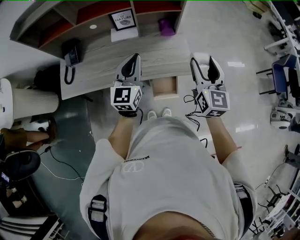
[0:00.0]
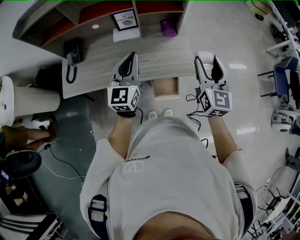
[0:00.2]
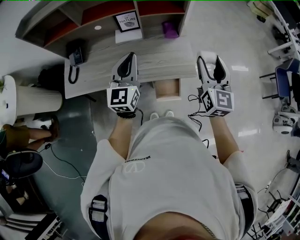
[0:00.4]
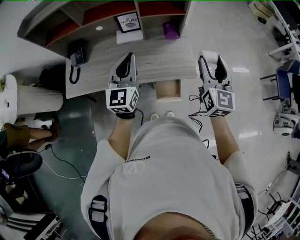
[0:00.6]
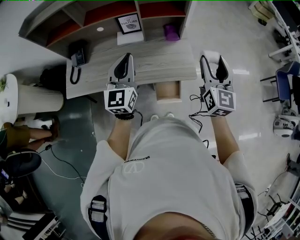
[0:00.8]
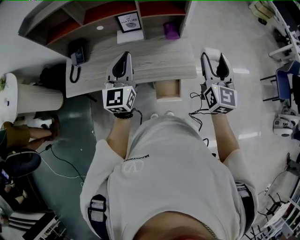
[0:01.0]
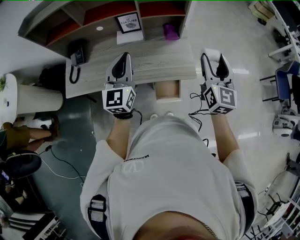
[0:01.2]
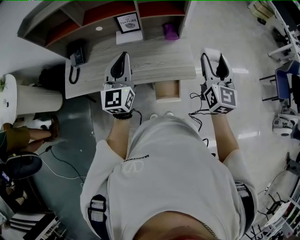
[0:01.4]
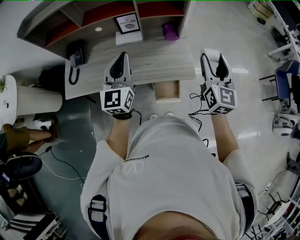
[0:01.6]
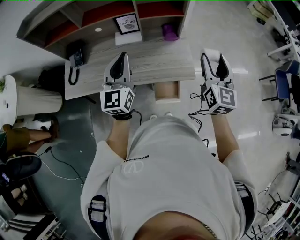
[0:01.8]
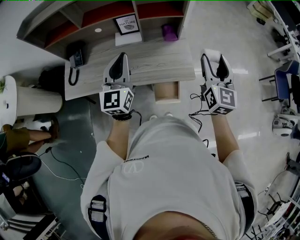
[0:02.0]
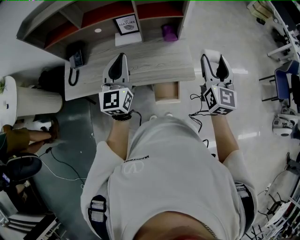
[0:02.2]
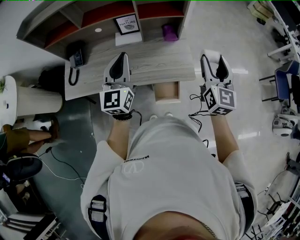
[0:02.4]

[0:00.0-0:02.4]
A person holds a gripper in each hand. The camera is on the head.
0:00.0 to 0:01.2: The left gripper ends up some 5 cm from where it was.
0:01.2 to 0:02.4: The two grippers keep their place.

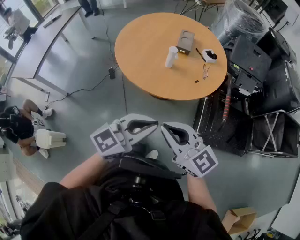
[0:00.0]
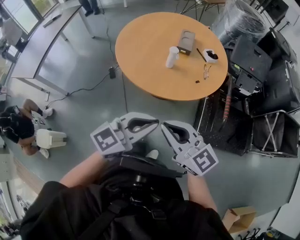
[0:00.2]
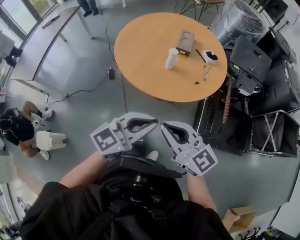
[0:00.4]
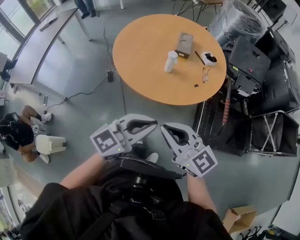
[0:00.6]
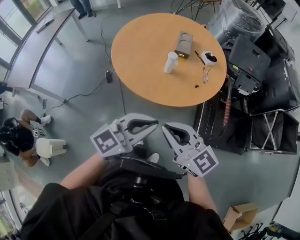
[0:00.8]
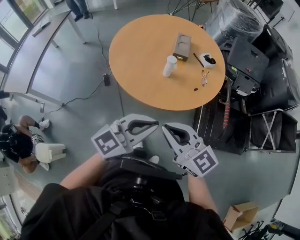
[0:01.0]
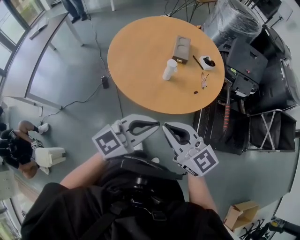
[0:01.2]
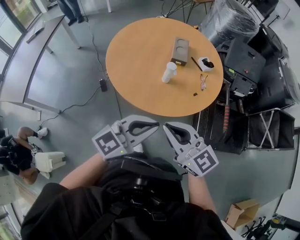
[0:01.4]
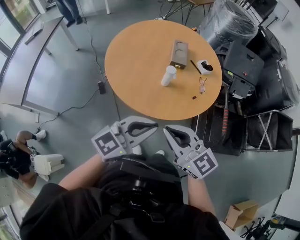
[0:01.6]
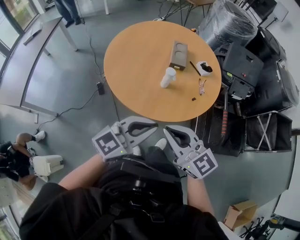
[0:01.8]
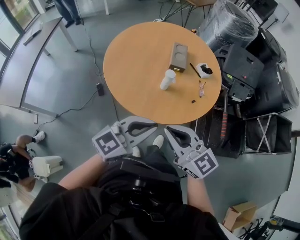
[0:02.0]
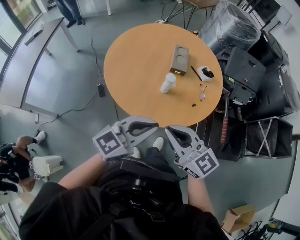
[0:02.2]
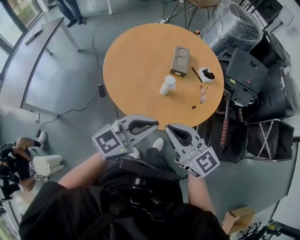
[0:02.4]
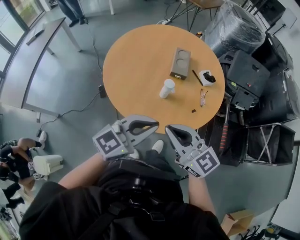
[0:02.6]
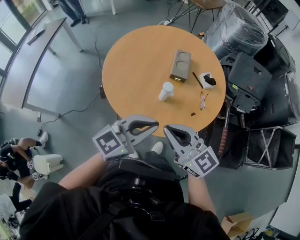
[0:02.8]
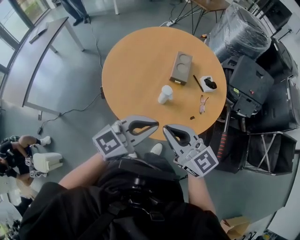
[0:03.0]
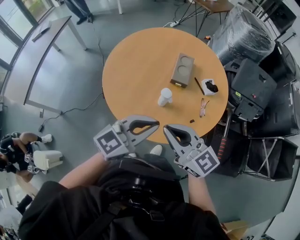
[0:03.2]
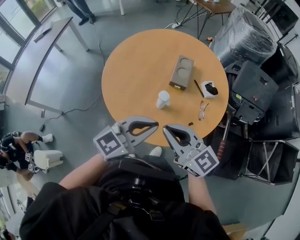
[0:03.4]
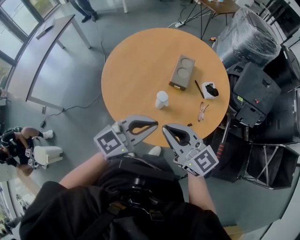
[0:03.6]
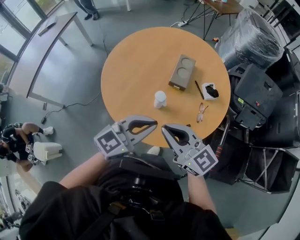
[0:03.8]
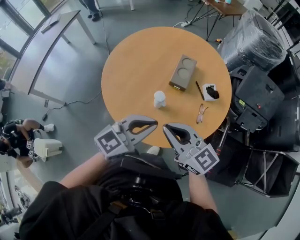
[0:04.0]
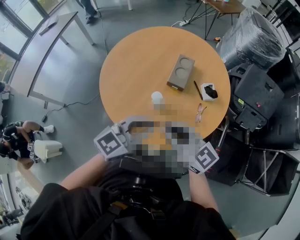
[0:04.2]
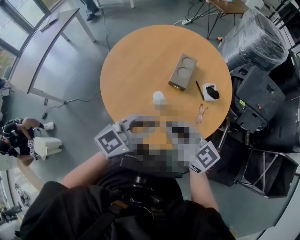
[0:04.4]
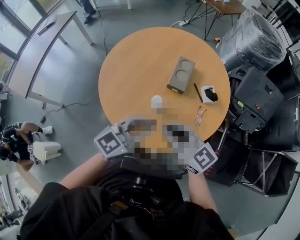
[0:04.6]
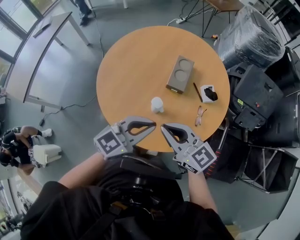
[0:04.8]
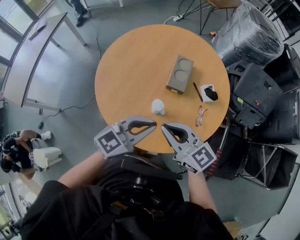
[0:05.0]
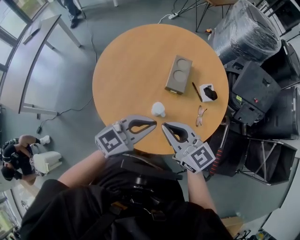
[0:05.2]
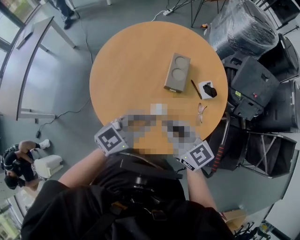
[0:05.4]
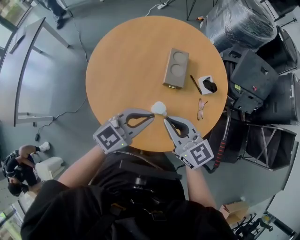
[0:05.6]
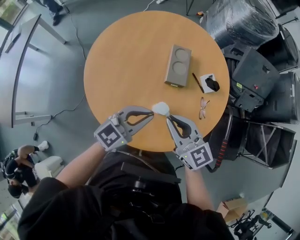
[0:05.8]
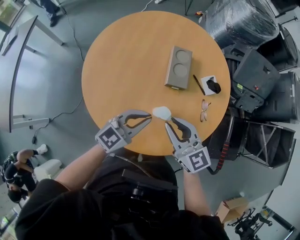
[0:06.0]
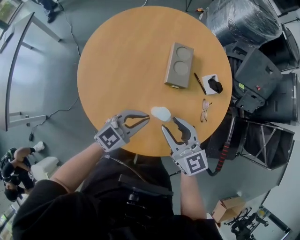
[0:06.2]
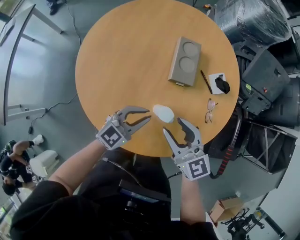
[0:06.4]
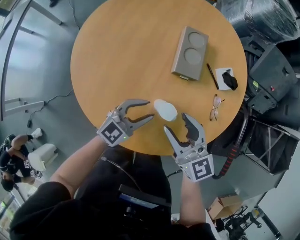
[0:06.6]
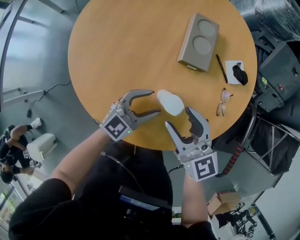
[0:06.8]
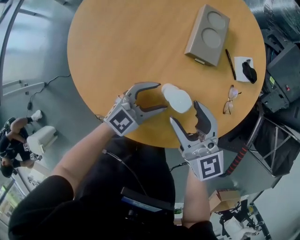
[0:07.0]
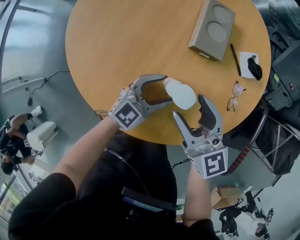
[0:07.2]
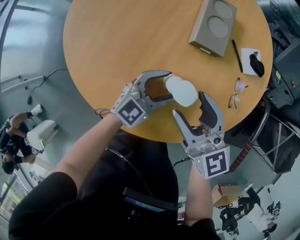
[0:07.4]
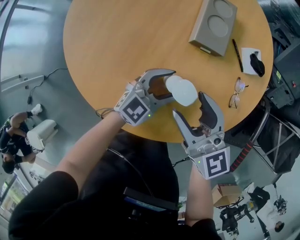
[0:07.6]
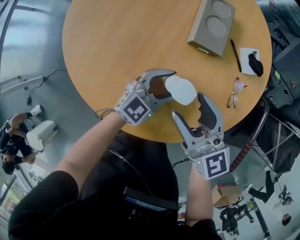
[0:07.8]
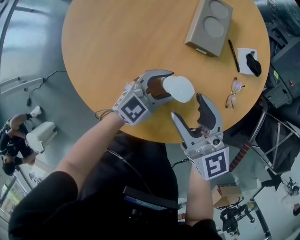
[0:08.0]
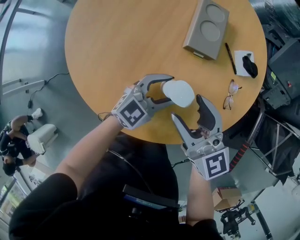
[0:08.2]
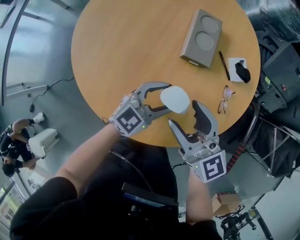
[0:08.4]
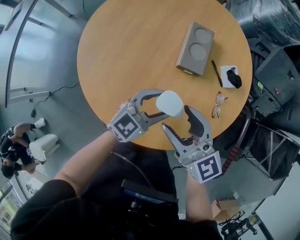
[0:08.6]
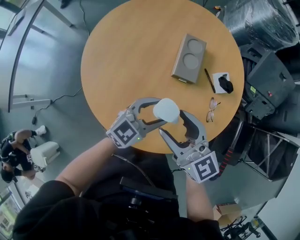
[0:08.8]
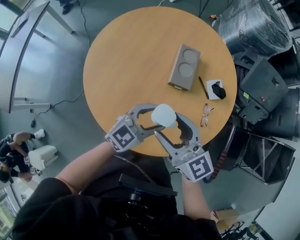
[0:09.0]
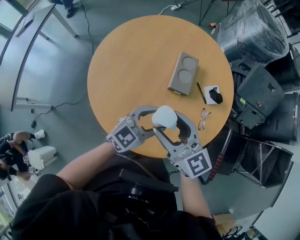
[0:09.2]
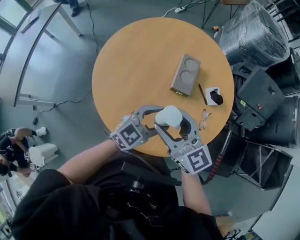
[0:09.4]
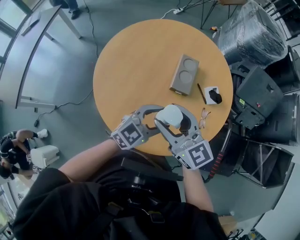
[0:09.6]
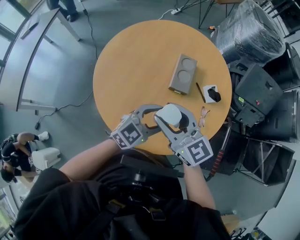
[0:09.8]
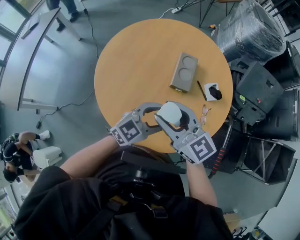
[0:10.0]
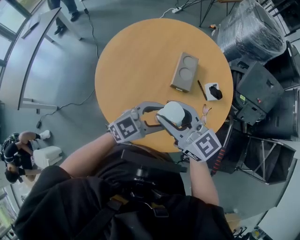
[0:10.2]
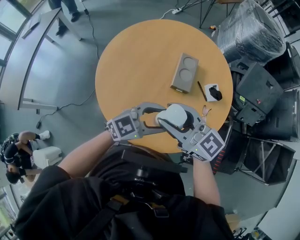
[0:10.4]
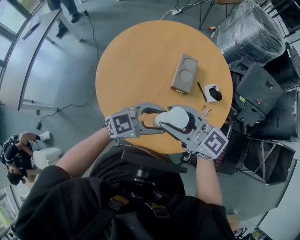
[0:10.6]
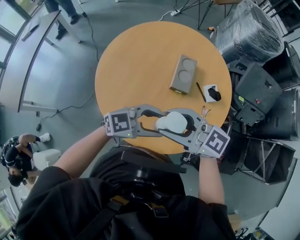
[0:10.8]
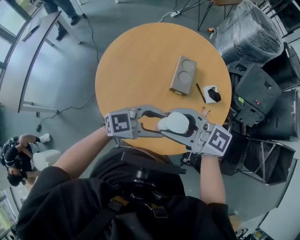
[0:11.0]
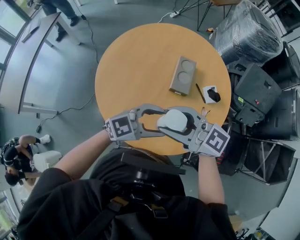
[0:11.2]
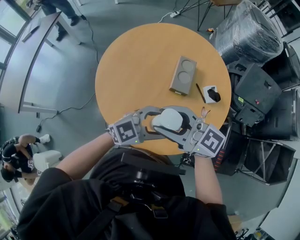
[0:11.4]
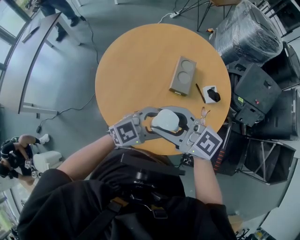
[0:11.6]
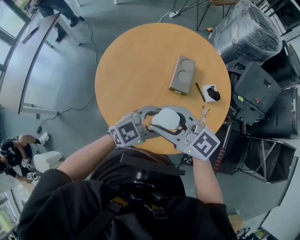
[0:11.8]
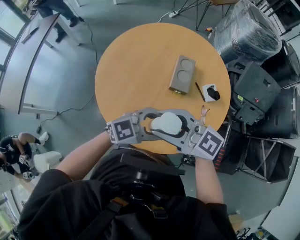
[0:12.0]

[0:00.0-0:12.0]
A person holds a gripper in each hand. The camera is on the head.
0:00.0 to 0:01.6: The two grippers go some 20 cm forward and to the left.
0:01.6 to 0:03.0: Both grippers move forward, some 20 cm.
0:03.0 to 0:04.4: The two grippers go about 15 cm to the right and forward.
0:04.4 to 0:06.0: Both grippers travel together forward, downward and to the left, roughly 25 cm. The right gripper turns by about 30 degrees.
0:06.0 to 0:07.6: The two grippers go approximately 25 cm downward. The right gripper opens up. Meanwhile the left gripper opens its fingers.
0:07.6 to 0:09.0: Both grippers travel together upward, roughly 25 cm.
0:09.0 to 0:10.4: Both grippers move upward, roughly 10 cm.
0:10.4 to 0:12.0: The right gripper shifts by some 5 cm.

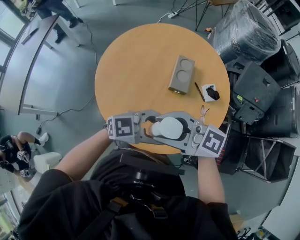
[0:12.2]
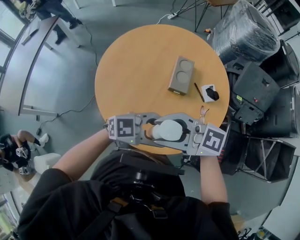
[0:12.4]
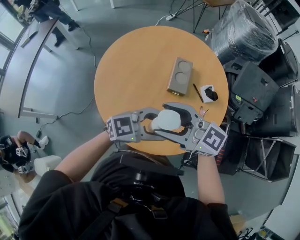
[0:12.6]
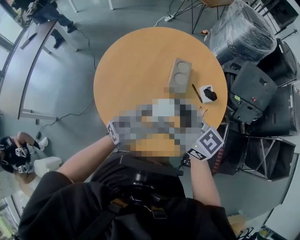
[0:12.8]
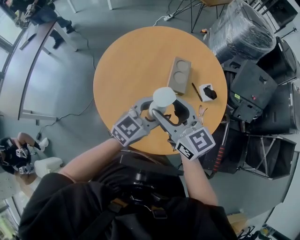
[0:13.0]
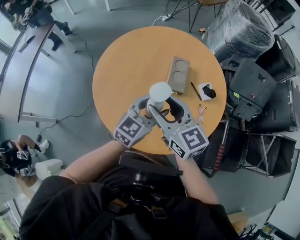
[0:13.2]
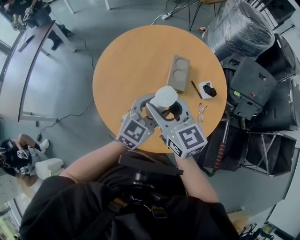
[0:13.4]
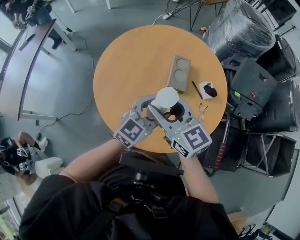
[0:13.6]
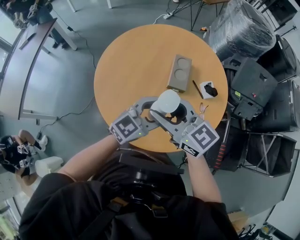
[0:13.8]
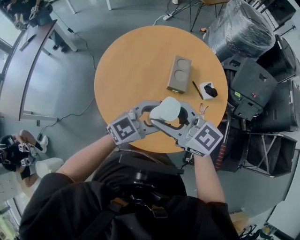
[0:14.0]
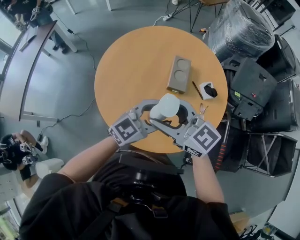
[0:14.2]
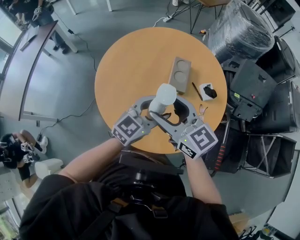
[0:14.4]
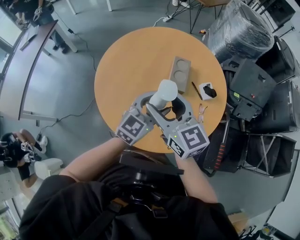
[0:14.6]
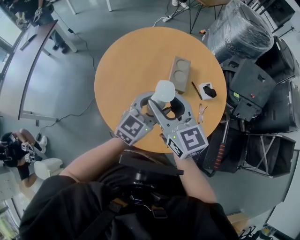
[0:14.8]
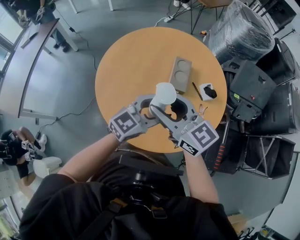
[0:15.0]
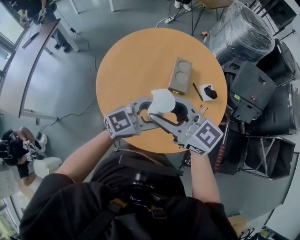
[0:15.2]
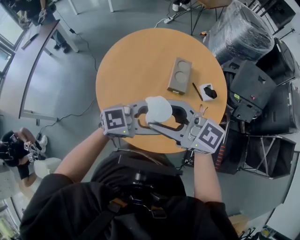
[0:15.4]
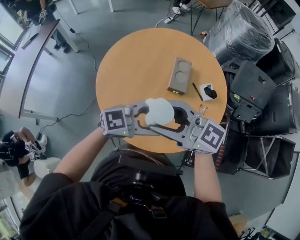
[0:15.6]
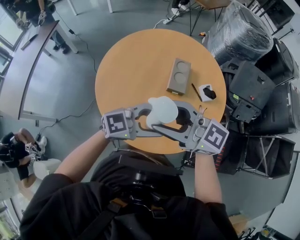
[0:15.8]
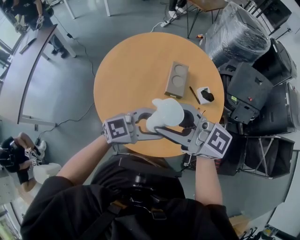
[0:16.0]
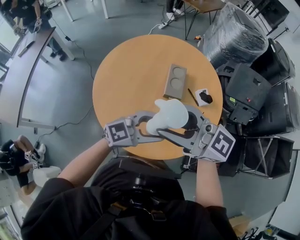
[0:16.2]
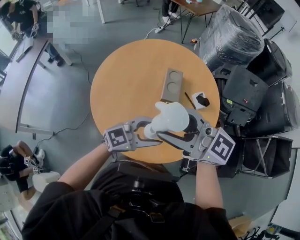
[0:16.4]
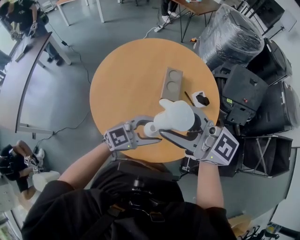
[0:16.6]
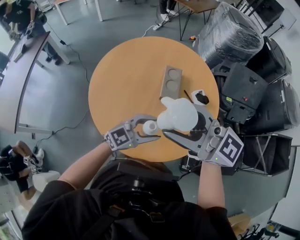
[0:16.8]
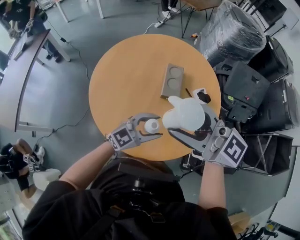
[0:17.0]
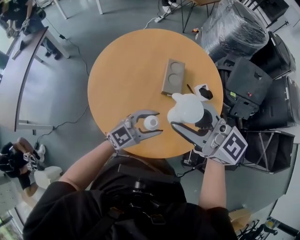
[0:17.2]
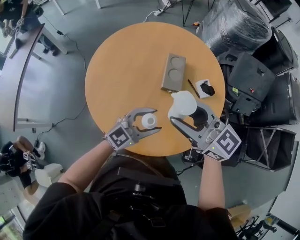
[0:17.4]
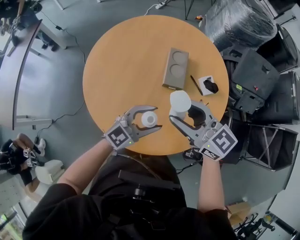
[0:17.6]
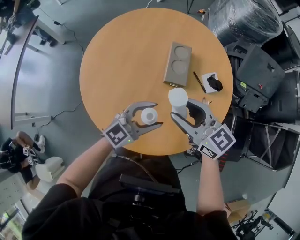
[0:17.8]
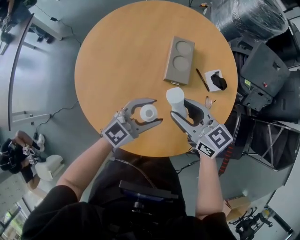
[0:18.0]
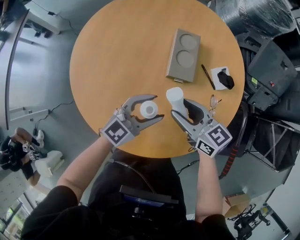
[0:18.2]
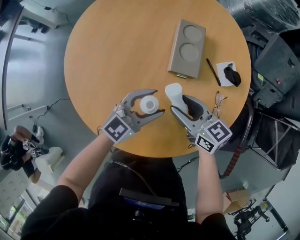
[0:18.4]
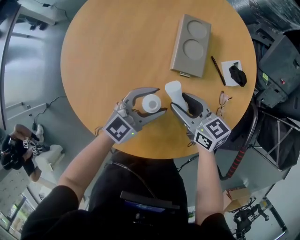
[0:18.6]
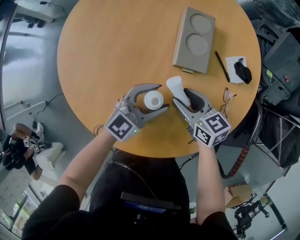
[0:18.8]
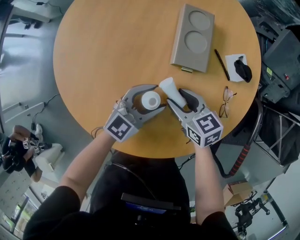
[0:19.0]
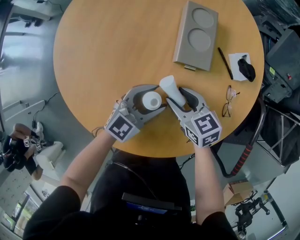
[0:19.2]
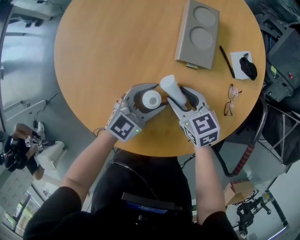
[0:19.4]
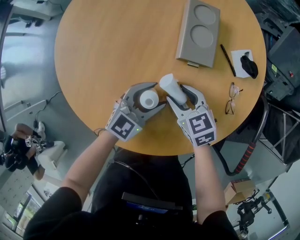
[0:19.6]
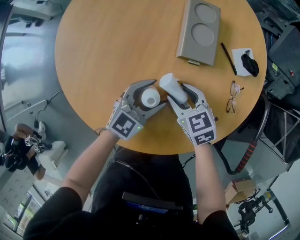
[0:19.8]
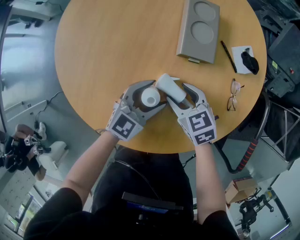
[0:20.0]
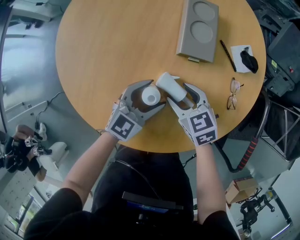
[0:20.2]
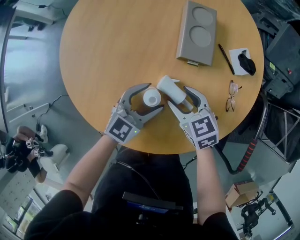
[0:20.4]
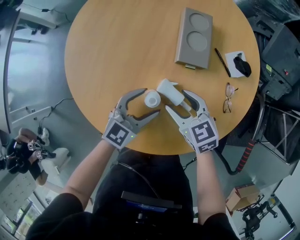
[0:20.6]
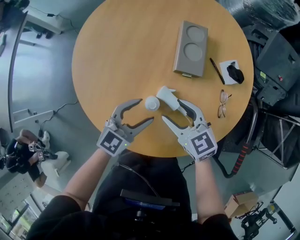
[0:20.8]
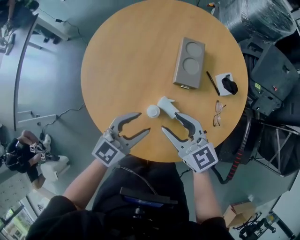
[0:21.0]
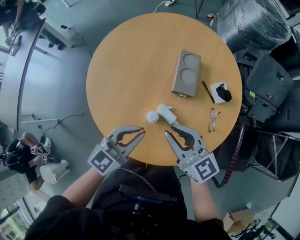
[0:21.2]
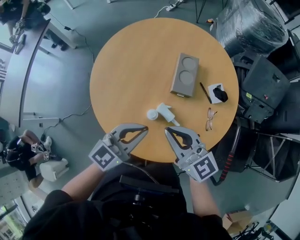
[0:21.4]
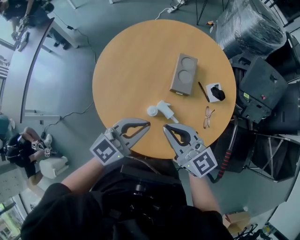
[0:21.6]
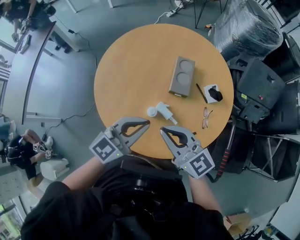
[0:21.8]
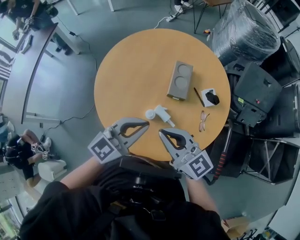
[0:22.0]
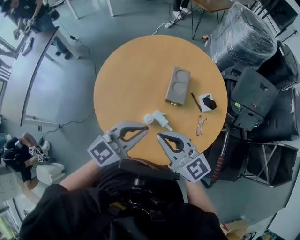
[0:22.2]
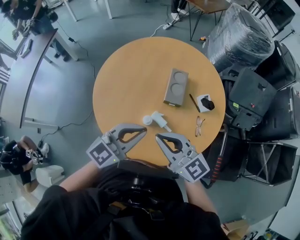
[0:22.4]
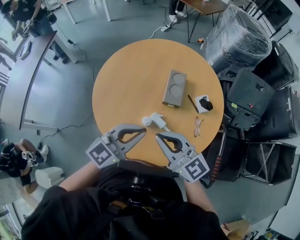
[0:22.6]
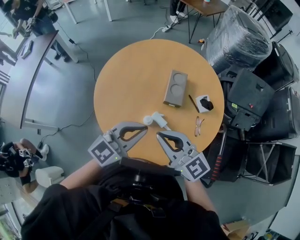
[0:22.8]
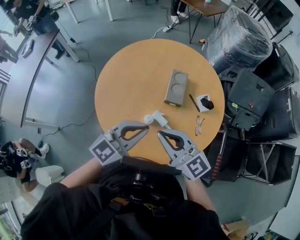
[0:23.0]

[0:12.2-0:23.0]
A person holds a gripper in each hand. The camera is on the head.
0:12.2 to 0:13.8: The left gripper rotates roughly 30 degrees, while the right gripper rotates about 30 degrees.
0:13.8 to 0:15.2: The grippers stay close to where they were, moving slightly.
0:15.2 to 0:16.8: The right gripper shifts some 10 cm upward; the left gripper travels downward by roughly 5 cm.
0:16.8 to 0:18.4: The right gripper heads downward, covering about 50 cm, and tilts its fingers about 30 degrees downward. The left gripper is displaced downward by roughly 25 cm.
0:18.4 to 0:20.0: Both grippers move downward, approximately 15 cm. The right gripper swivels some 30 degrees.
0:20.0 to 0:21.4: Both grippers travel together upward, about 40 cm. The right gripper angles its fingers upward, by about 40 degrees, and closes its fingers. The left gripper closes its fingers.
0:21.4 to 0:23.0: Both grippers move upward and backward, some 15 cm.
